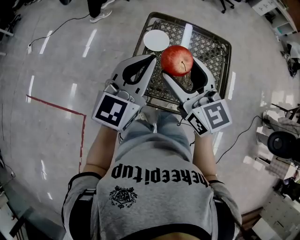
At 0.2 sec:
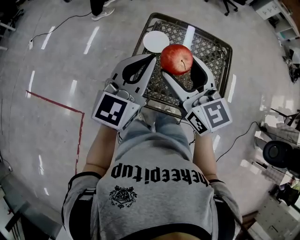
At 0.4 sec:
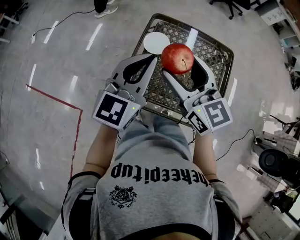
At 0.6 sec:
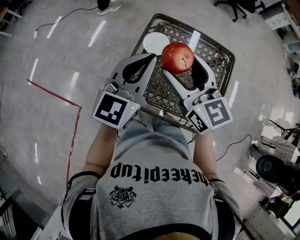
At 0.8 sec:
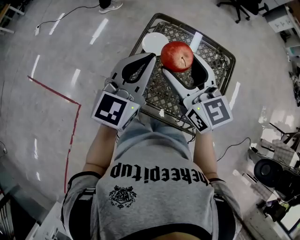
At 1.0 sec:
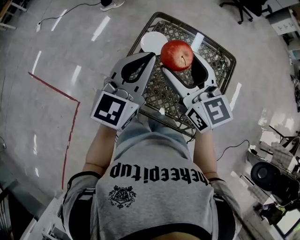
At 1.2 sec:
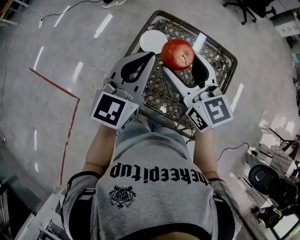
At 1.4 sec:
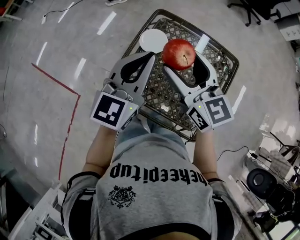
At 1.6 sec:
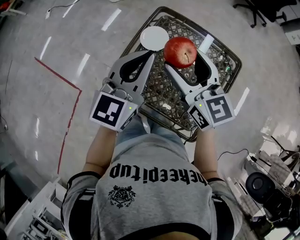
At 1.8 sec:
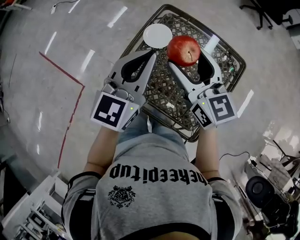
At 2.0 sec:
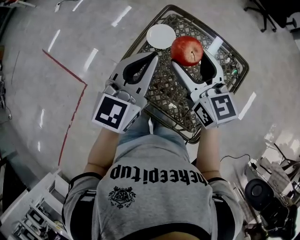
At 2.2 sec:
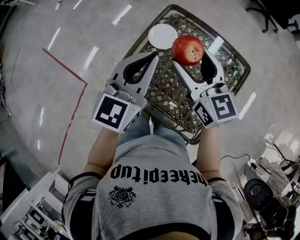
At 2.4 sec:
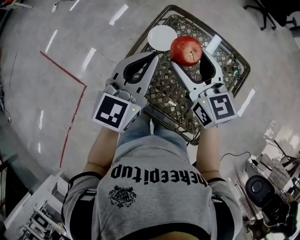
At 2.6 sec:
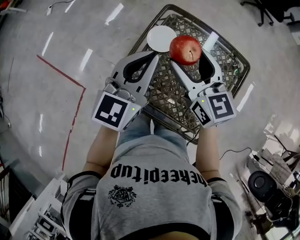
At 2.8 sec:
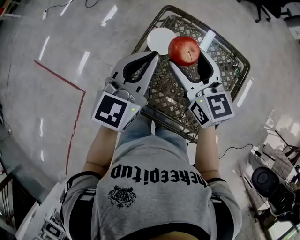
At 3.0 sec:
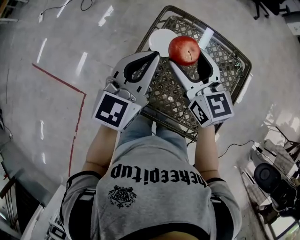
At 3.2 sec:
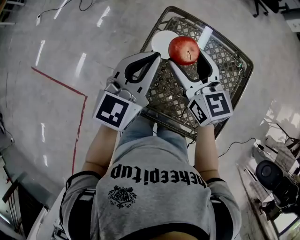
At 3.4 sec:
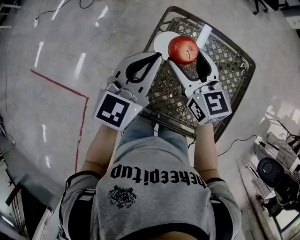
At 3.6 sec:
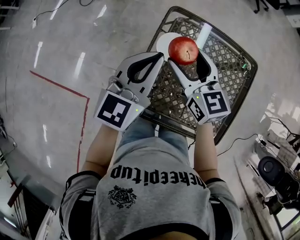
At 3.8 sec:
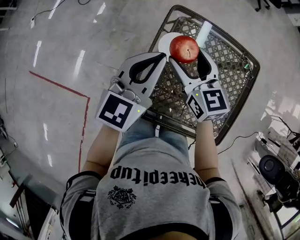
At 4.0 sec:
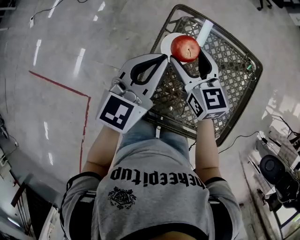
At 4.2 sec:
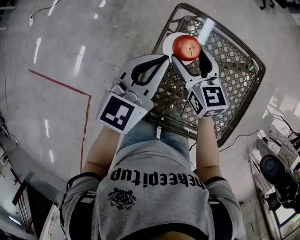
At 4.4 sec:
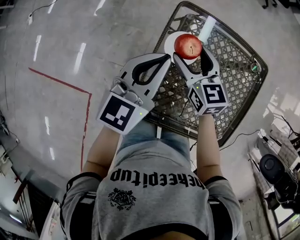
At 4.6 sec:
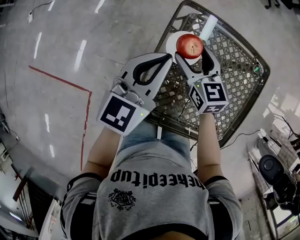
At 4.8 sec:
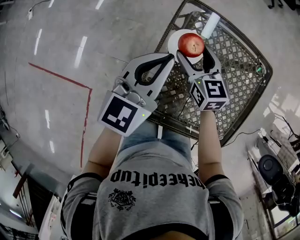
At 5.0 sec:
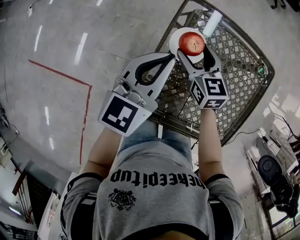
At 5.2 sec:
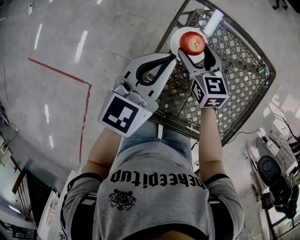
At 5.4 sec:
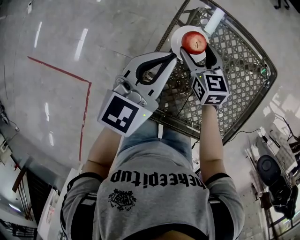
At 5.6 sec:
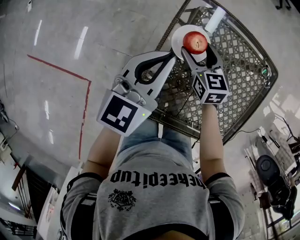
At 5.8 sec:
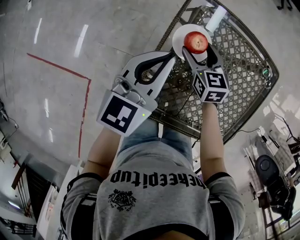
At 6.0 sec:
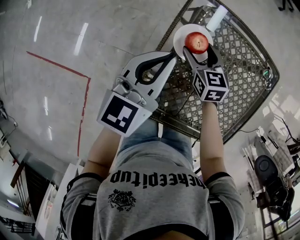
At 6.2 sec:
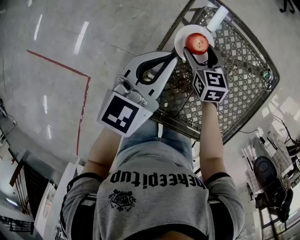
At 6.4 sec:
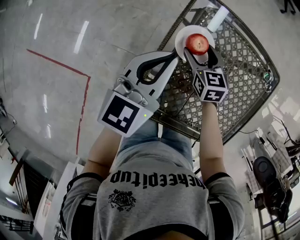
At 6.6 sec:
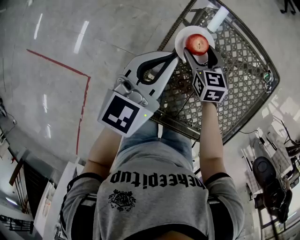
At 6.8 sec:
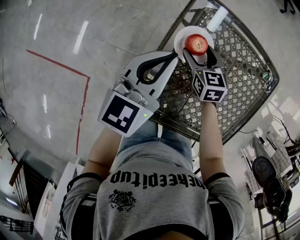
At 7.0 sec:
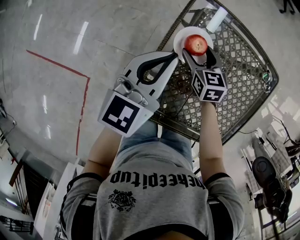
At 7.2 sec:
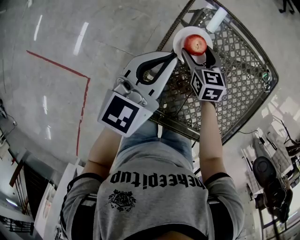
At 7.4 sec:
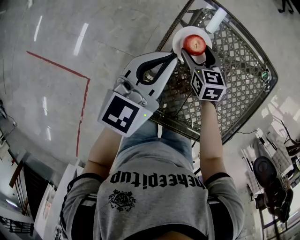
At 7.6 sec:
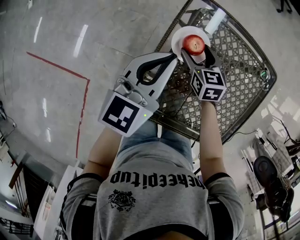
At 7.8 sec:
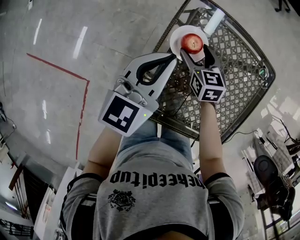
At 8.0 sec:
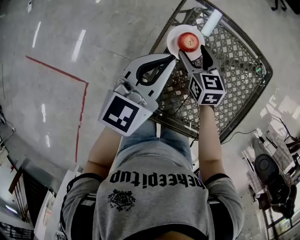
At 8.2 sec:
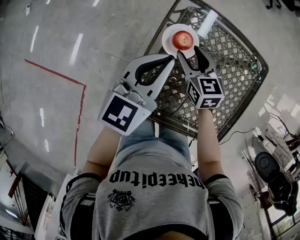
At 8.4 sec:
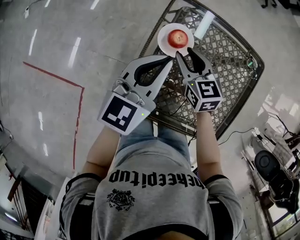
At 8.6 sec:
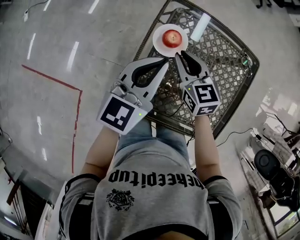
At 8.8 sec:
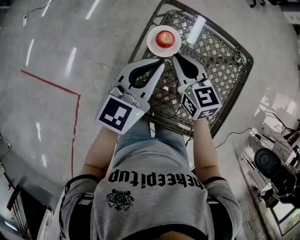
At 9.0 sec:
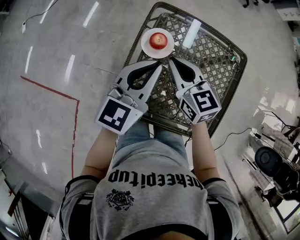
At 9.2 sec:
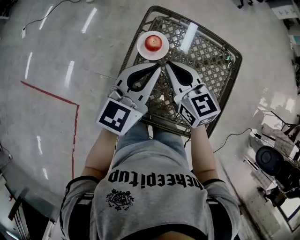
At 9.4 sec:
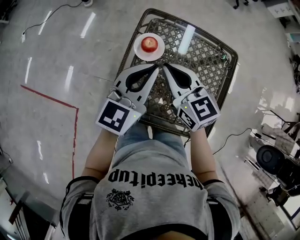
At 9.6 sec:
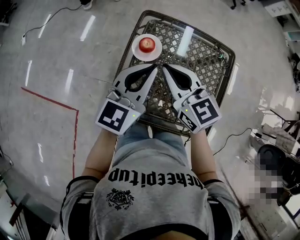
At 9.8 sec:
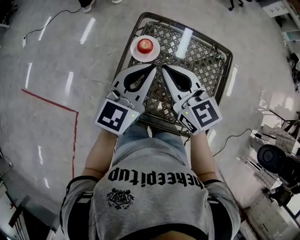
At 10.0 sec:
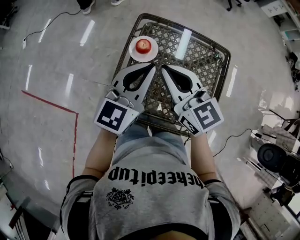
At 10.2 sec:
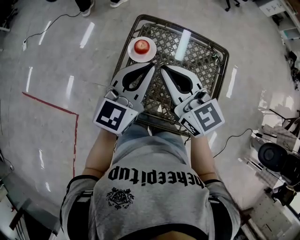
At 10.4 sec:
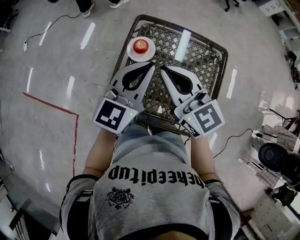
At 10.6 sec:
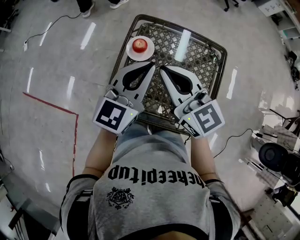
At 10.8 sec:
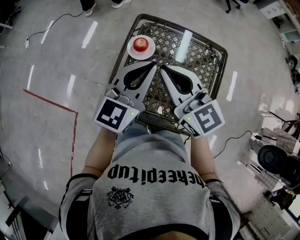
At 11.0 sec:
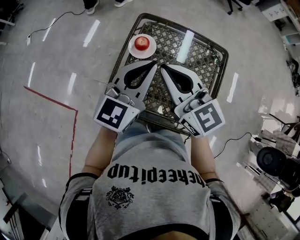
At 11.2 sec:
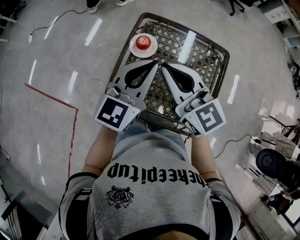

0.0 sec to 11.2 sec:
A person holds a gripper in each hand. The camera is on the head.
0.0 sec to 1.6 sec: The grippers both shift to the right and forward by approximately 15 cm.
1.6 sec to 3.2 sec: The right gripper moves forward, to the left and downward, roughly 10 cm; the left gripper shifts about 10 cm forward and to the left.
3.2 sec to 4.8 sec: The left gripper travels downward and forward by roughly 10 cm, while the right gripper shifts about 20 cm downward and forward.
4.8 sec to 6.4 sec: The right gripper travels downward by some 10 cm.
6.4 sec to 8.0 sec: The right gripper shifts roughly 5 cm upward.
8.0 sec to 9.6 sec: The right gripper shifts about 25 cm upward and backward, swivels some 30 degrees, and closes. Meanwhile the left gripper goes approximately 15 cm upward, to the right and backward.
9.6 sec to 11.2 sec: The left gripper shifts approximately 5 cm upward, while the right gripper moves upward and backward, roughly 10 cm.

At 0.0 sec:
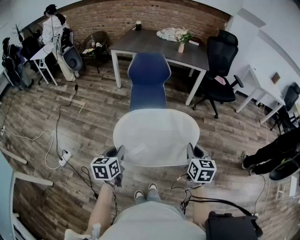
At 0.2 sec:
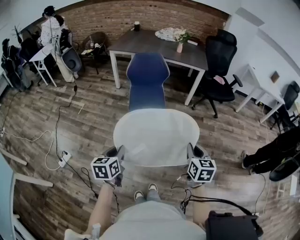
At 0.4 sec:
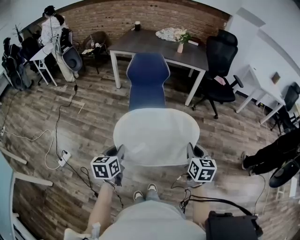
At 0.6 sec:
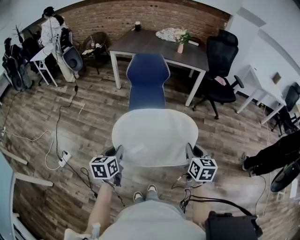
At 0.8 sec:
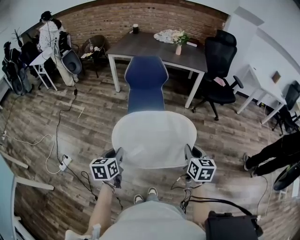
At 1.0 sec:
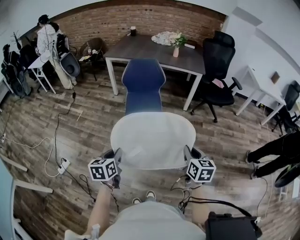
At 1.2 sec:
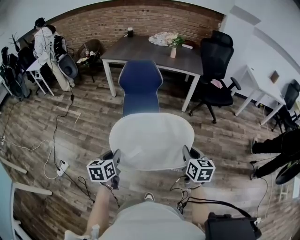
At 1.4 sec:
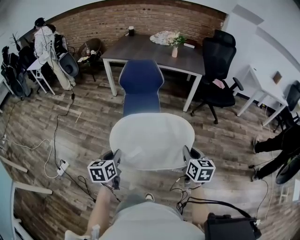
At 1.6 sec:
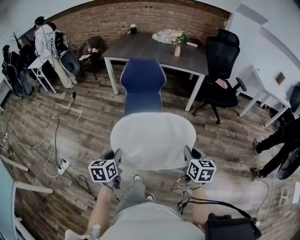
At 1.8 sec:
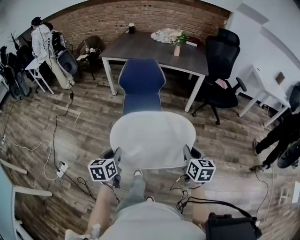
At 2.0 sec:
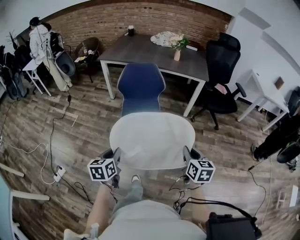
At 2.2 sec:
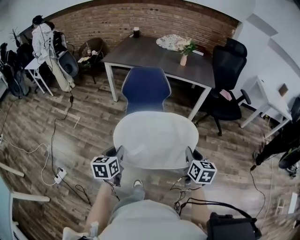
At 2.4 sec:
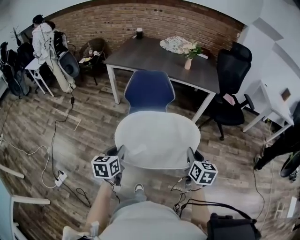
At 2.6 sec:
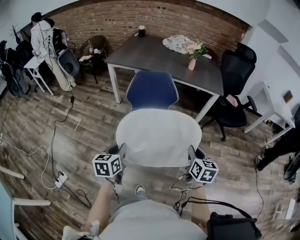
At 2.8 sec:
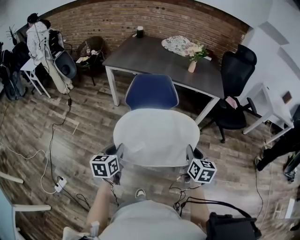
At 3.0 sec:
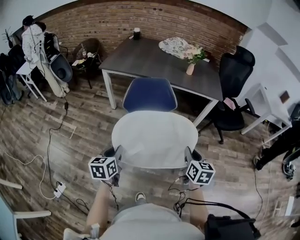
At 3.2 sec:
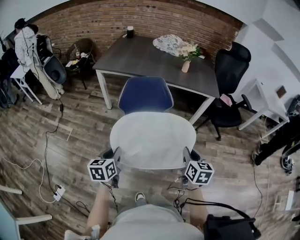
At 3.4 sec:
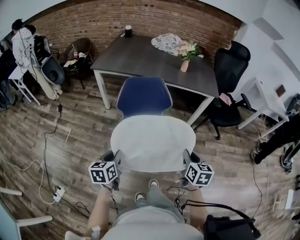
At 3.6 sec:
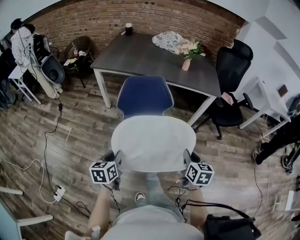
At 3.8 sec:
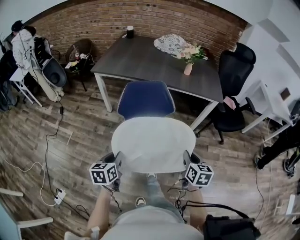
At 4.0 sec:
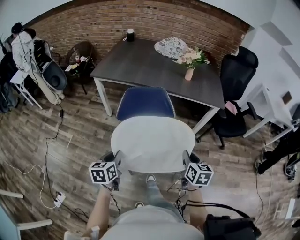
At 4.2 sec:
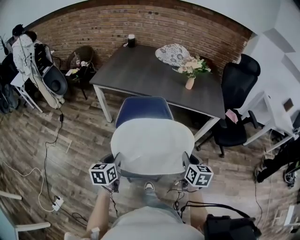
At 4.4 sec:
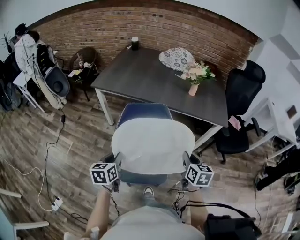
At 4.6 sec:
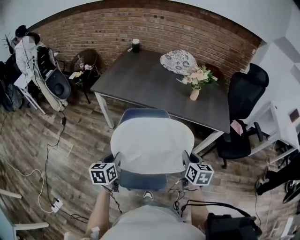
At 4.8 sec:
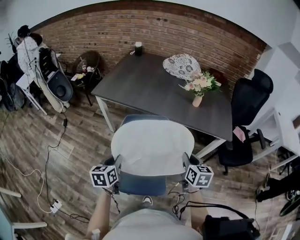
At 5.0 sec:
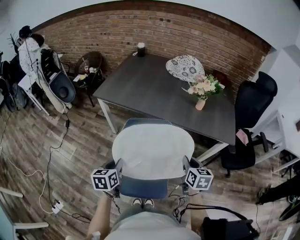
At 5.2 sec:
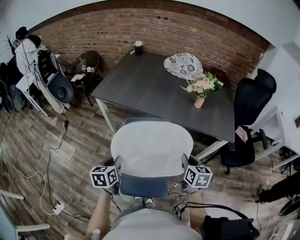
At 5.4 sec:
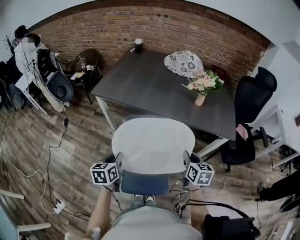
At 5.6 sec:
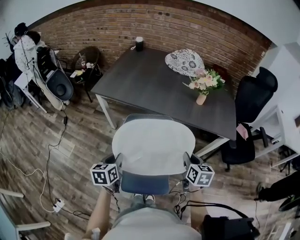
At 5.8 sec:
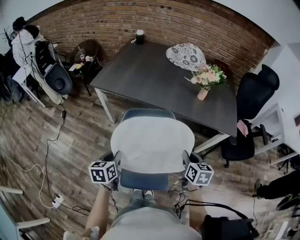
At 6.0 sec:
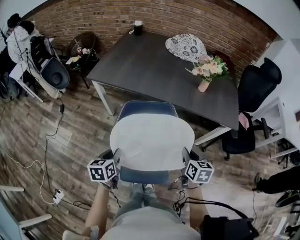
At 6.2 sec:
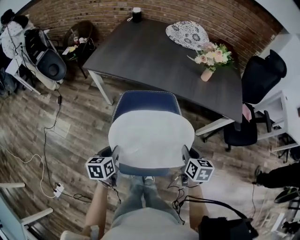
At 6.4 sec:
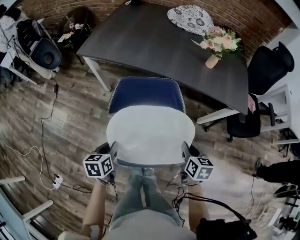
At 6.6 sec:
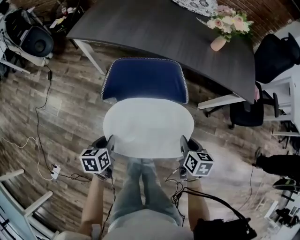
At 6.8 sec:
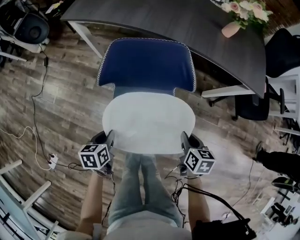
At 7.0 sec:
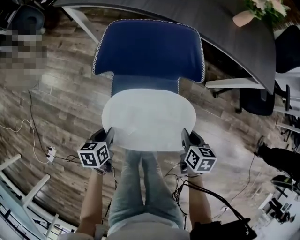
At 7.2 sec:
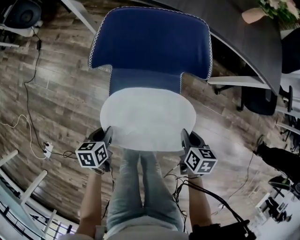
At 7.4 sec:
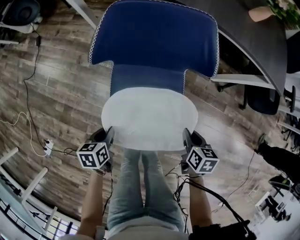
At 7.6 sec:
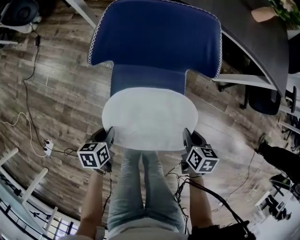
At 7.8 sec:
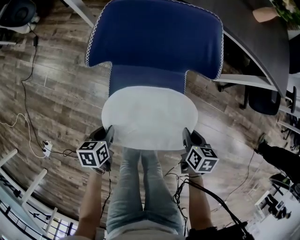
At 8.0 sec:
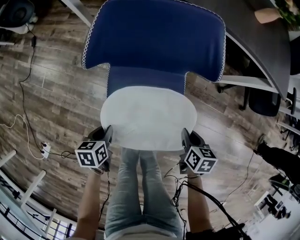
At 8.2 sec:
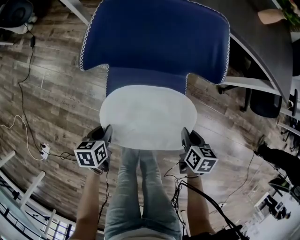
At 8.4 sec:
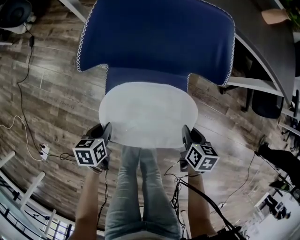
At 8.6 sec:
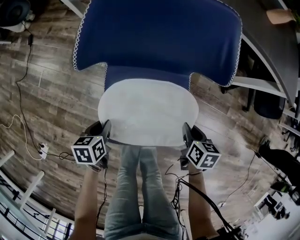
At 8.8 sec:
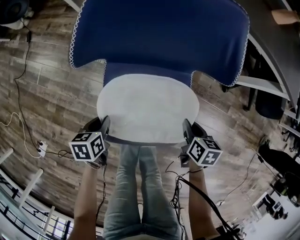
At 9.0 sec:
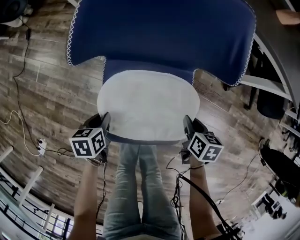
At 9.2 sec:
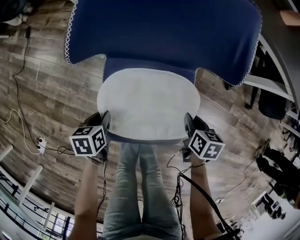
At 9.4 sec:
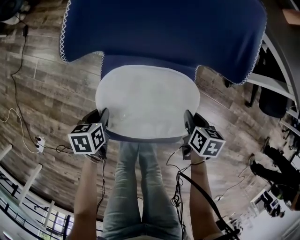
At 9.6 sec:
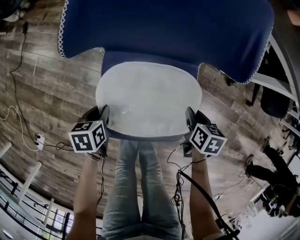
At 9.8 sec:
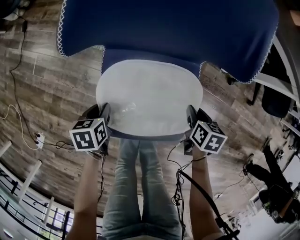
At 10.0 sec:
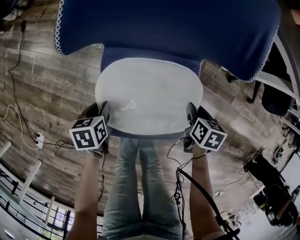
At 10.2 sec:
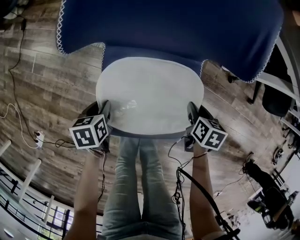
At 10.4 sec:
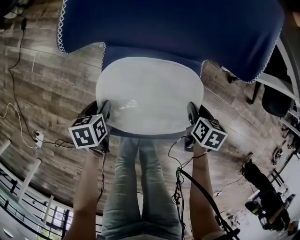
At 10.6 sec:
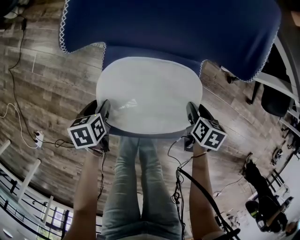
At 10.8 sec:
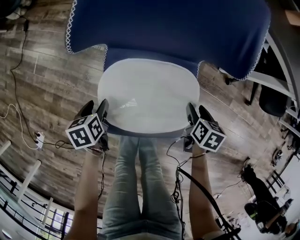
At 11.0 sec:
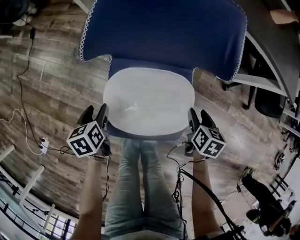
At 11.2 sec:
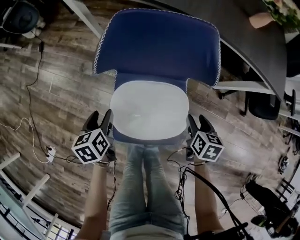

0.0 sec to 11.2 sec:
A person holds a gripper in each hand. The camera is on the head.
0.0 sec to 1.6 sec: Both grippers move forward and to the right, some 15 cm.
1.6 sec to 3.2 sec: The grippers both shift forward and to the left by about 35 cm.
3.2 sec to 4.8 sec: Both grippers travel together forward, approximately 30 cm.
4.8 sec to 6.4 sec: Both grippers travel together downward, approximately 10 cm.
6.4 sec to 8.0 sec: The two grippers go about 25 cm downward.
8.0 sec to 9.6 sec: The left gripper shifts some 10 cm downward; the right gripper travels downward and forward by approximately 10 cm.
9.6 sec to 11.2 sec: The two grippers go some 15 cm upward. The left gripper rotates some 20 degrees, and opens its fingers. The right gripper opens its fingers.

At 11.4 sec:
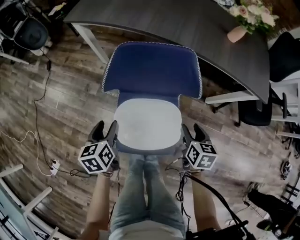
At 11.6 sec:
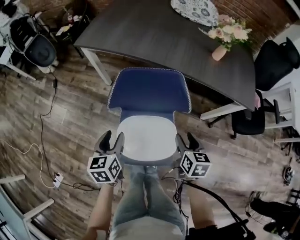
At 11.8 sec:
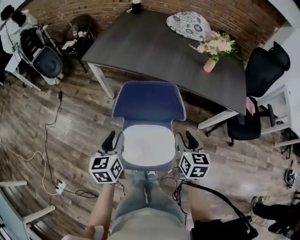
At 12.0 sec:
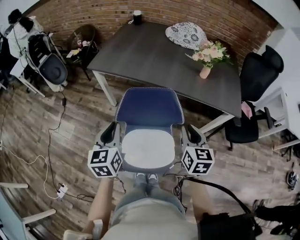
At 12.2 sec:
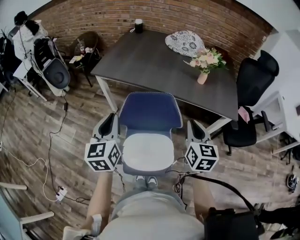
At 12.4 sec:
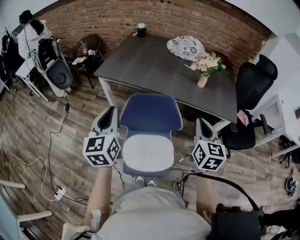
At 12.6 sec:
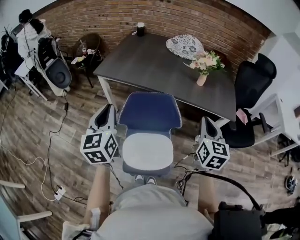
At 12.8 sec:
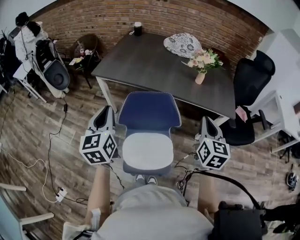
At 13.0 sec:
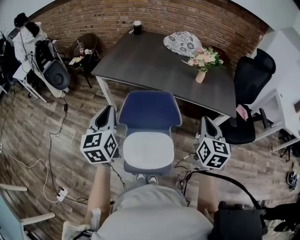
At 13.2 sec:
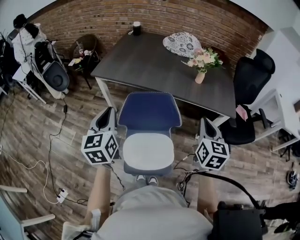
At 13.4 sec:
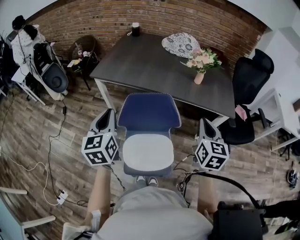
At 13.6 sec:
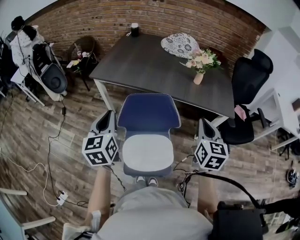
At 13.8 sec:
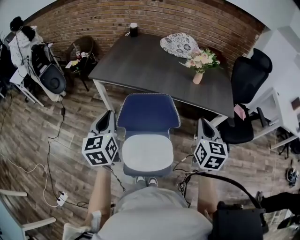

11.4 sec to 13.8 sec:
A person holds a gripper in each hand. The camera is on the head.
11.4 sec to 12.6 sec: Both grippers move upward, roughly 40 cm. The right gripper points its fingers some 40 degrees further upward, and closes. The left gripper points its fingers about 40 degrees further upward, and closes up.
12.6 sec to 13.8 sec: The grippers move only a little.
